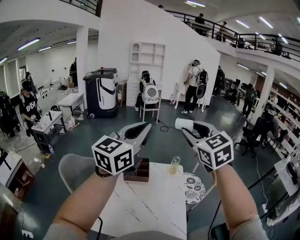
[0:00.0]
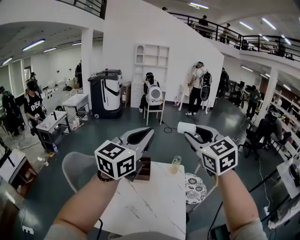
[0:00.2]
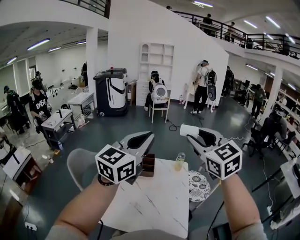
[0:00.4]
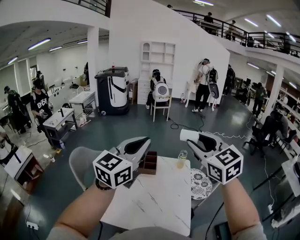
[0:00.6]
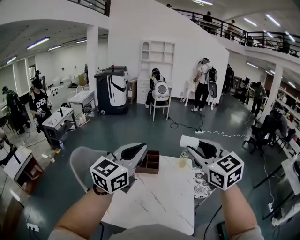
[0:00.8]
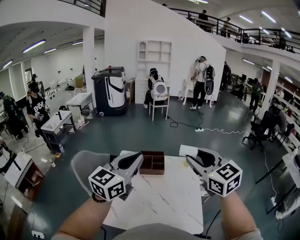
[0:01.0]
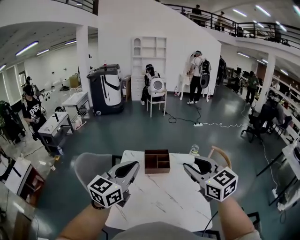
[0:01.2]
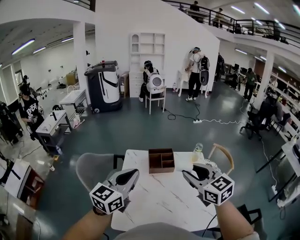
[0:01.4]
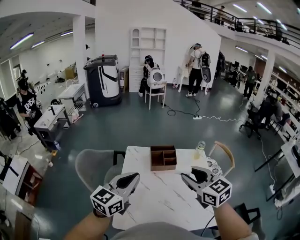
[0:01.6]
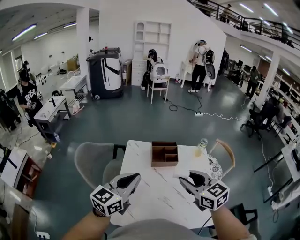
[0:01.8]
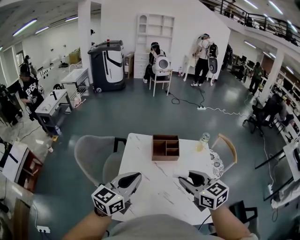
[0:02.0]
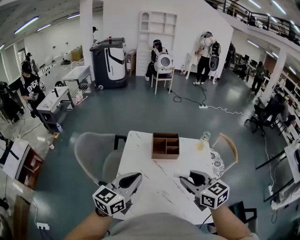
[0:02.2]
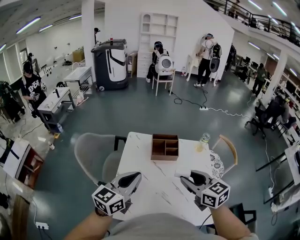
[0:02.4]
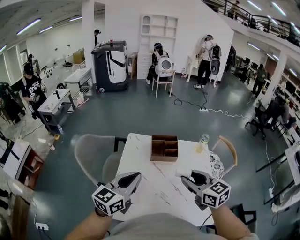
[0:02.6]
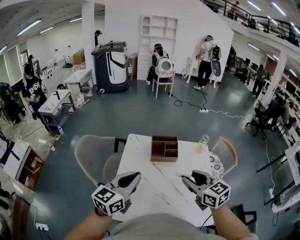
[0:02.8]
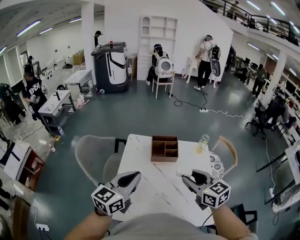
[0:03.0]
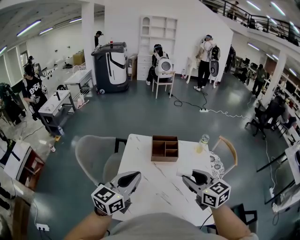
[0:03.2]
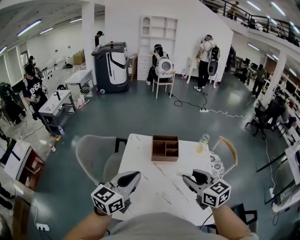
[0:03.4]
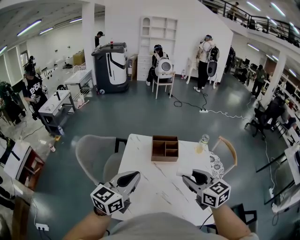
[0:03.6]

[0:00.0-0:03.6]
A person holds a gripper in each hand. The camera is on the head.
0:00.0 to 0:01.8: The right gripper travels downward, to the left and backward by roughly 35 cm, and turns by roughly 30 degrees, while the left gripper moves downward and to the left, roughly 35 cm.
0:01.8 to 0:03.6: The grippers move only a little.

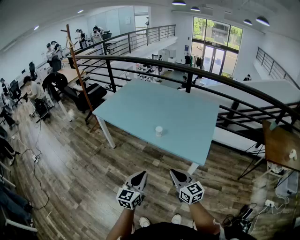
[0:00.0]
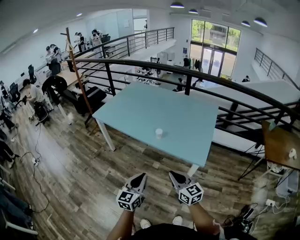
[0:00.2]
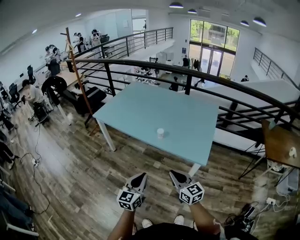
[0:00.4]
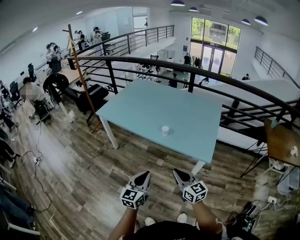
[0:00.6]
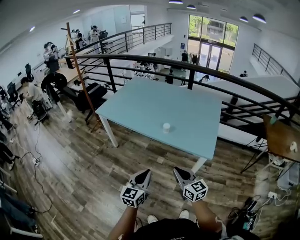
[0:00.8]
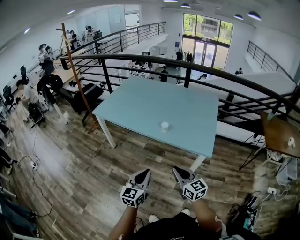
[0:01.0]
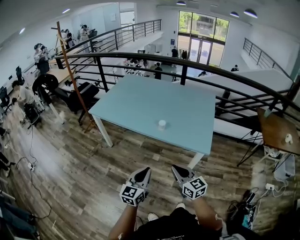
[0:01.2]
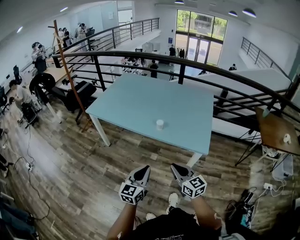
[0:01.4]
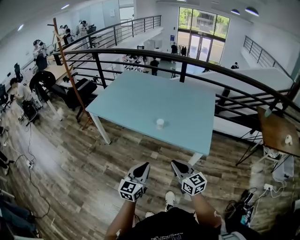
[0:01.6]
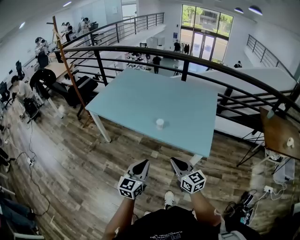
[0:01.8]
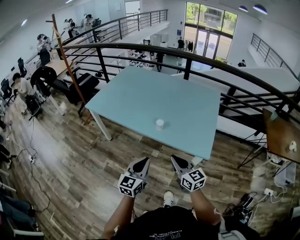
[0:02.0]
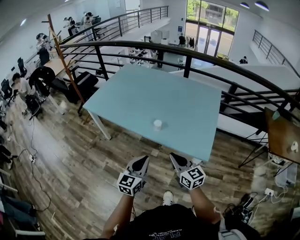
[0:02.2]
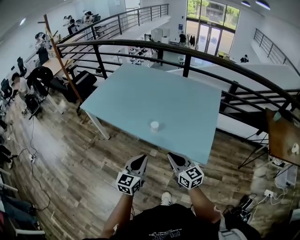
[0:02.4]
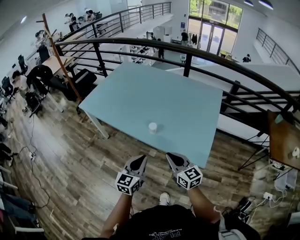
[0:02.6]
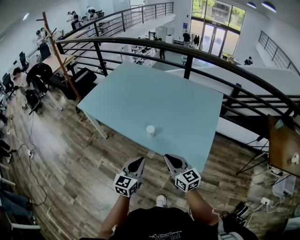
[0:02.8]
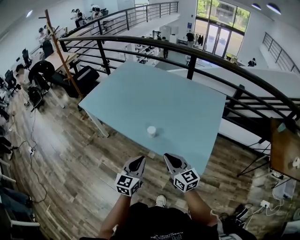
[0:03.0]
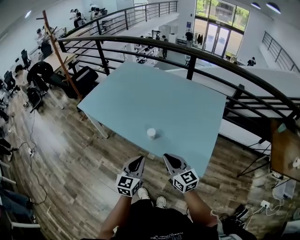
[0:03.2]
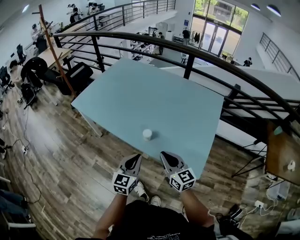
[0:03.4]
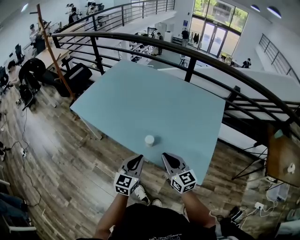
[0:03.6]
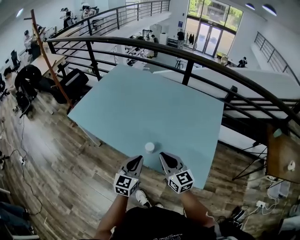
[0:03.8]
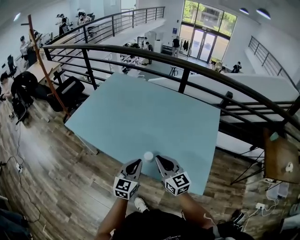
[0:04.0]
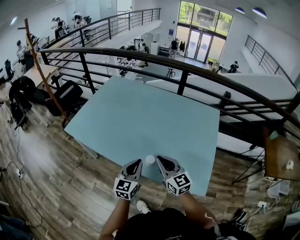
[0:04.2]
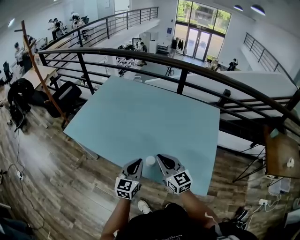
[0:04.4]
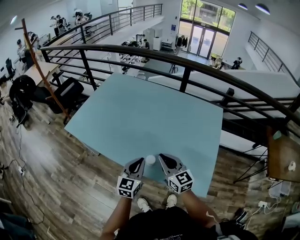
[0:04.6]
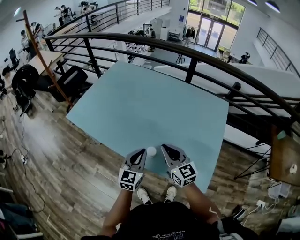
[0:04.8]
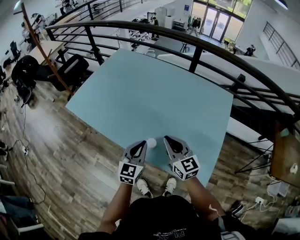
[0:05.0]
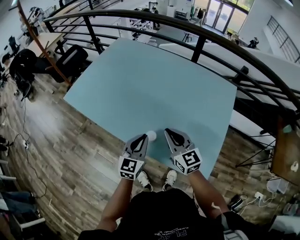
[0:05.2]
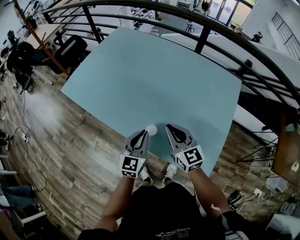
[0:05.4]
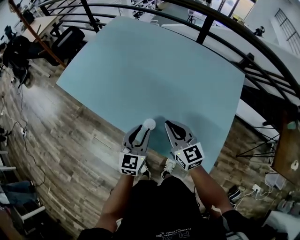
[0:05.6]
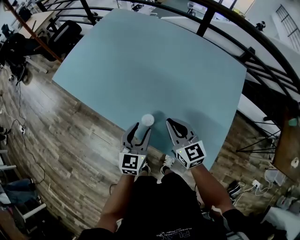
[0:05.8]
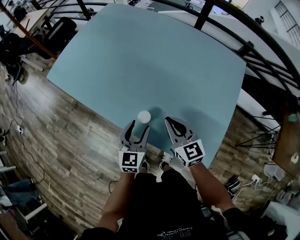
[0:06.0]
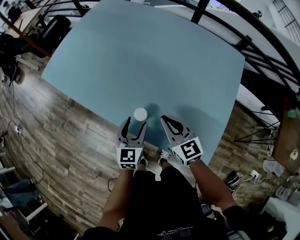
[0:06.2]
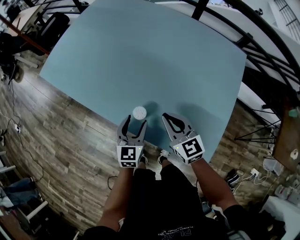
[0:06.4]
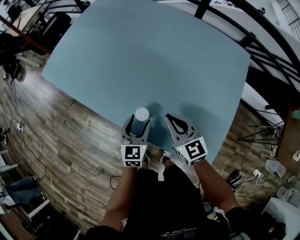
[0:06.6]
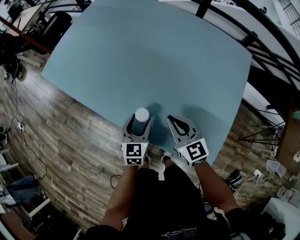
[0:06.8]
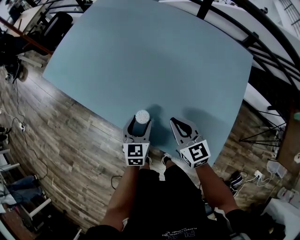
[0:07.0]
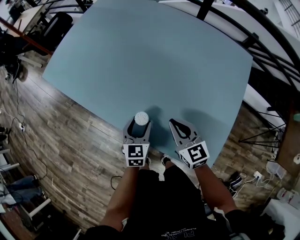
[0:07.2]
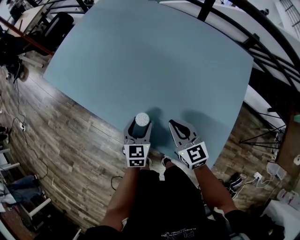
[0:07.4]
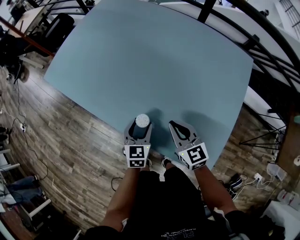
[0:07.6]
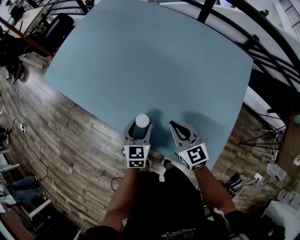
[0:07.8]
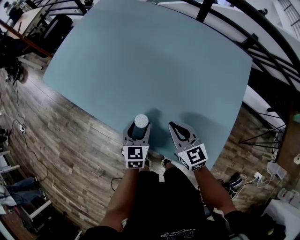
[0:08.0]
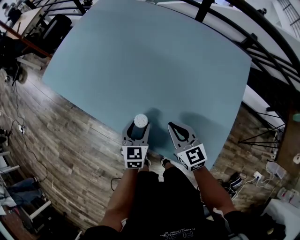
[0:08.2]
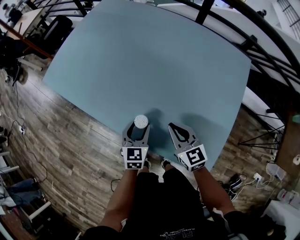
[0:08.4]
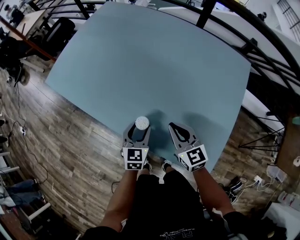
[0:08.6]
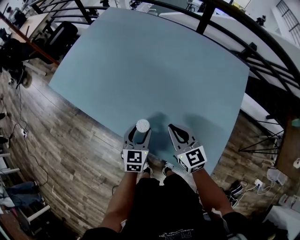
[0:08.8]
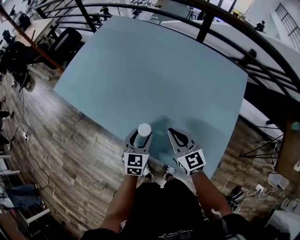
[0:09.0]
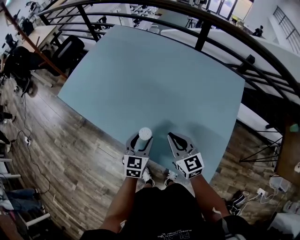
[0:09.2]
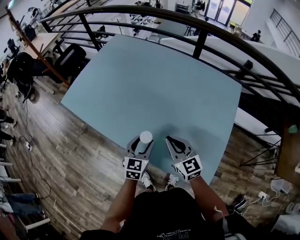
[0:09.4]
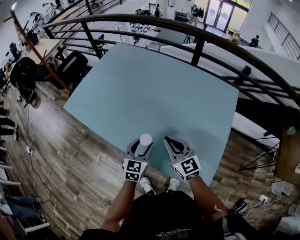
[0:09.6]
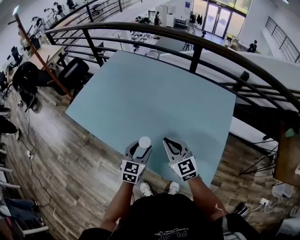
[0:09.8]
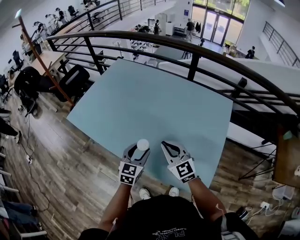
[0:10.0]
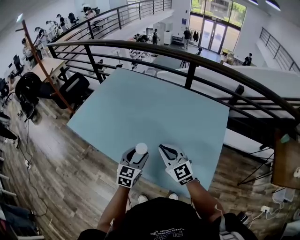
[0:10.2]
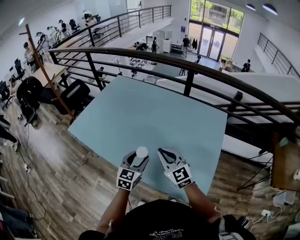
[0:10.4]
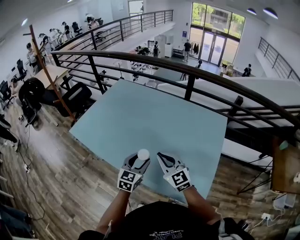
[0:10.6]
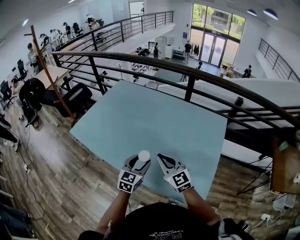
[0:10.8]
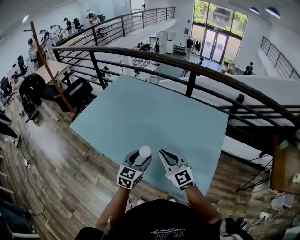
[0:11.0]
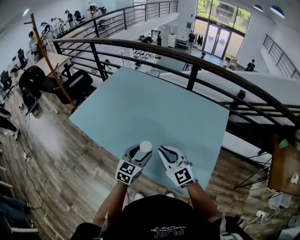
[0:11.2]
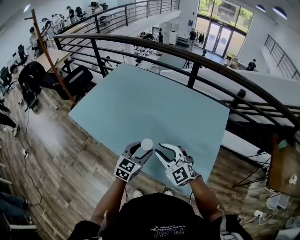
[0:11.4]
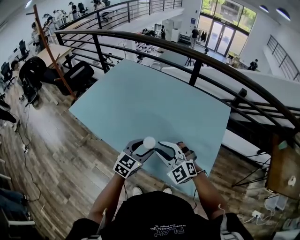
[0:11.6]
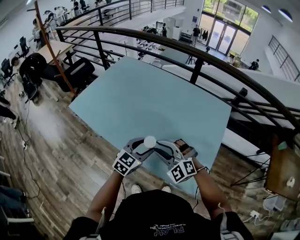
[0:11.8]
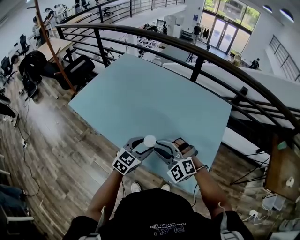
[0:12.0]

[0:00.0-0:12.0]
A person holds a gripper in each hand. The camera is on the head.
0:00.0 to 0:01.6: The right gripper moves about 5 cm, while the left gripper ends up some 5 cm from where it was.
0:01.6 to 0:03.0: The left gripper shifts roughly 20 cm forward and to the right; the right gripper heads forward, covering approximately 15 cm.
0:03.0 to 0:04.4: The grippers both shift forward by roughly 20 cm.
0:04.4 to 0:06.0: The left gripper travels downward by about 15 cm, and opens up. The right gripper moves downward and to the right, about 15 cm.
0:06.0 to 0:07.6: The left gripper goes some 5 cm downward.
0:07.6 to 0:09.0: The left gripper is displaced upward by some 5 cm.
0:09.0 to 0:10.4: The grippers both shift upward by roughly 15 cm.
0:10.4 to 0:12.0: The left gripper changes place by approximately 5 cm. The right gripper shifts roughly 5 cm backward, rotates around the line of its fingers by some 40 degrees, counterclockwise from behind, and opens up.

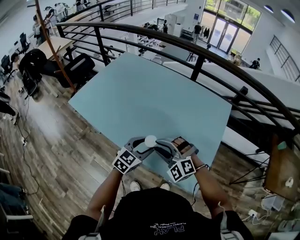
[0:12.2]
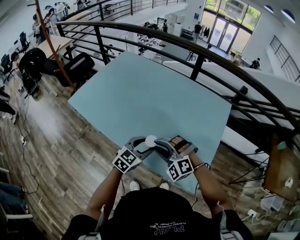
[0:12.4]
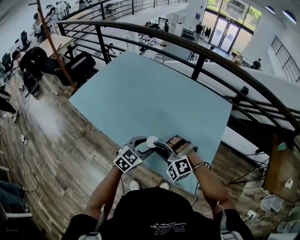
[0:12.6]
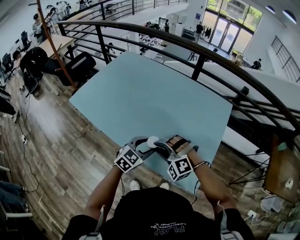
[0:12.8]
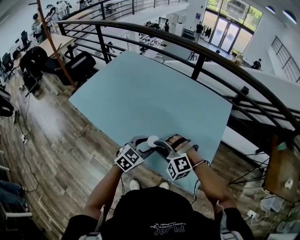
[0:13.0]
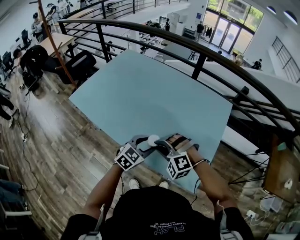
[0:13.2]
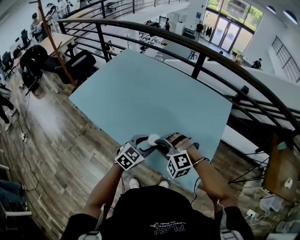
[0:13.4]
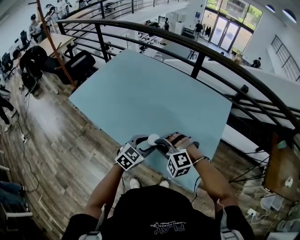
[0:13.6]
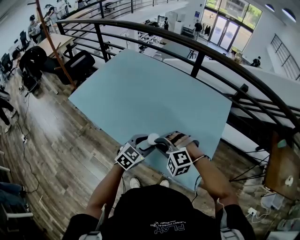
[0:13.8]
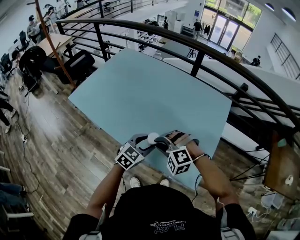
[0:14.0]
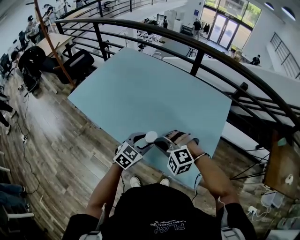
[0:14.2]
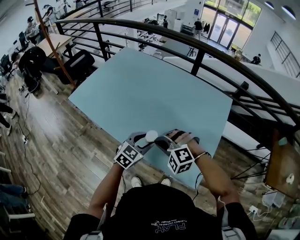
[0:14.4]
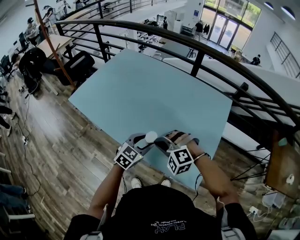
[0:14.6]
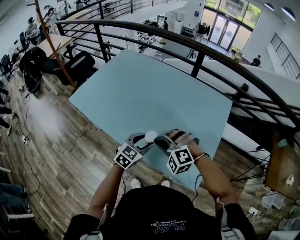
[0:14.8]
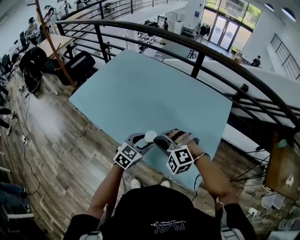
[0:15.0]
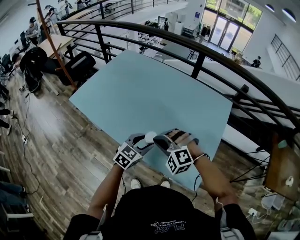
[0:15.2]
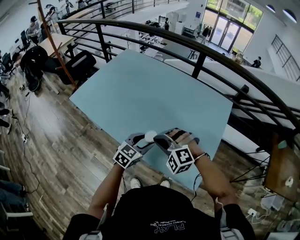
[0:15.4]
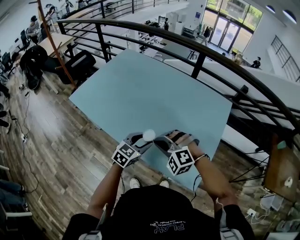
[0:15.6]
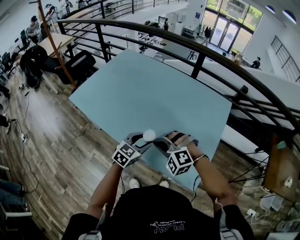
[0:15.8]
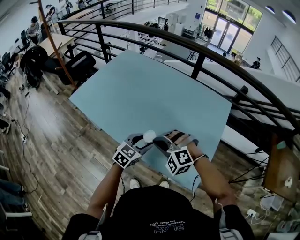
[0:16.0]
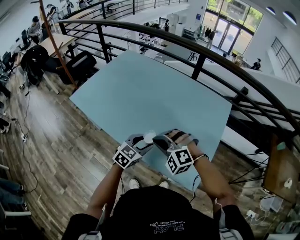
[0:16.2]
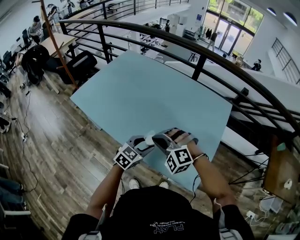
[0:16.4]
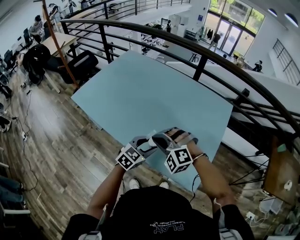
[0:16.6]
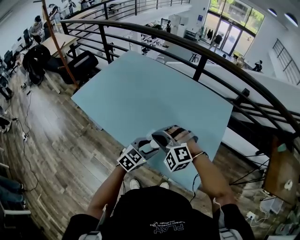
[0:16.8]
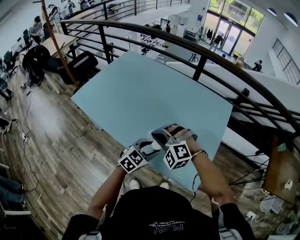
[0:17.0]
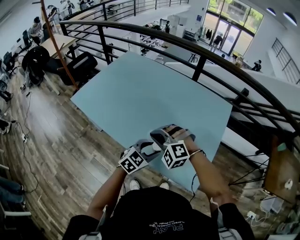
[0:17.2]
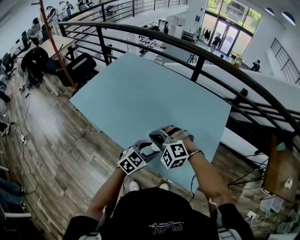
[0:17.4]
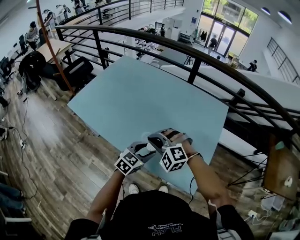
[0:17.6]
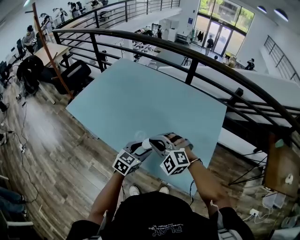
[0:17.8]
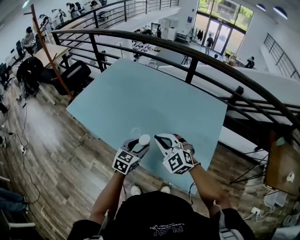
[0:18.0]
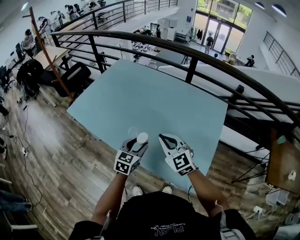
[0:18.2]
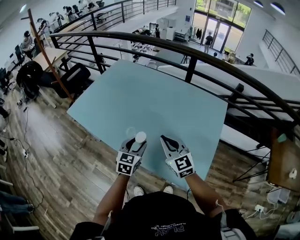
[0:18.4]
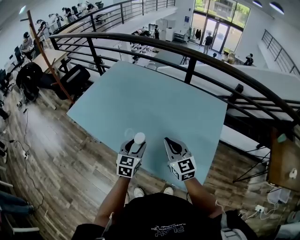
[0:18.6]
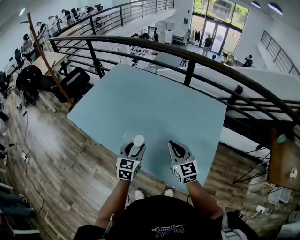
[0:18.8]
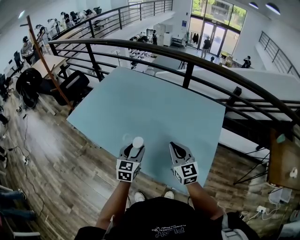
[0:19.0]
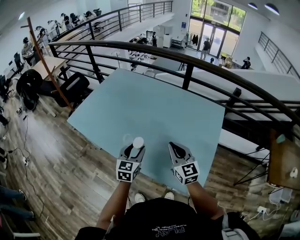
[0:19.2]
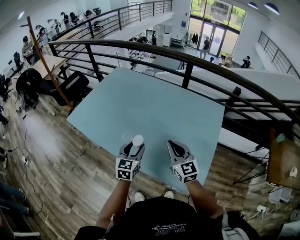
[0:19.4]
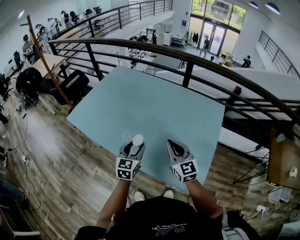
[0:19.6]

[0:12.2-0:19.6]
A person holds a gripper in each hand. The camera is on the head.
0:12.2 to 0:13.6: The grippers stay close to where they were, moving slightly.
0:13.6 to 0:16.6: There are only small adjustments of the grippers.
0:16.6 to 0:18.2: The left gripper shifts by about 5 cm, while the right gripper ends up about 5 cm from where it was, and rotates around the line of its fingers by roughly 50 degrees, clockwise from behind.
0:18.2 to 0:19.6: The right gripper is displaced to the right by approximately 5 cm, and swivels about 20 degrees.

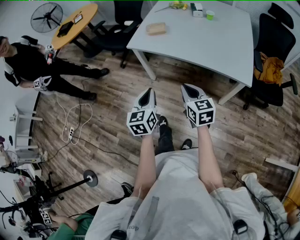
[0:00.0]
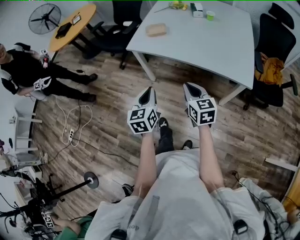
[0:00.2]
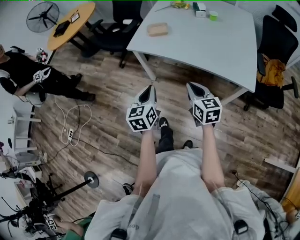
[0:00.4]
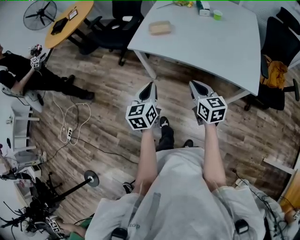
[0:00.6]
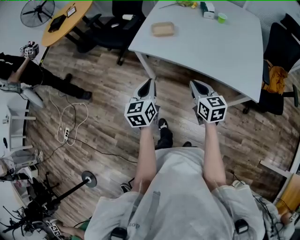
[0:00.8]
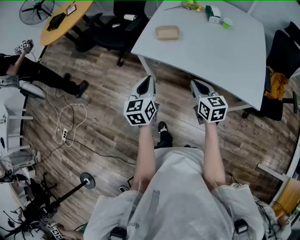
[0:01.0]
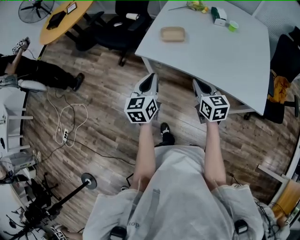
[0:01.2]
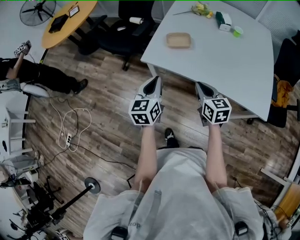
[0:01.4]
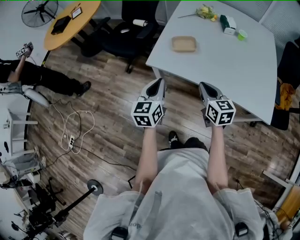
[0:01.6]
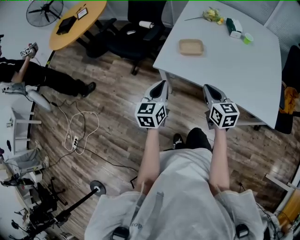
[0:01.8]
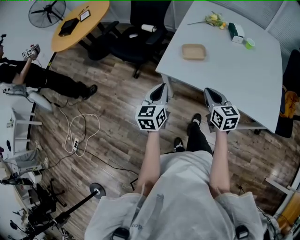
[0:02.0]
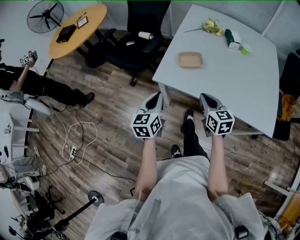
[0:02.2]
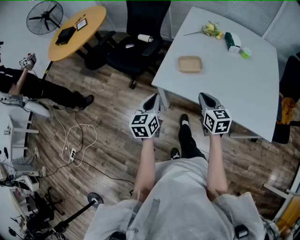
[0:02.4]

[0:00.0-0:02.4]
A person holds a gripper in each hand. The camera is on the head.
0:00.0 to 0:01.2: The grippers both shift forward by some 25 cm.
0:01.2 to 0:02.4: Both grippers travel together forward and to the left, about 15 cm.
